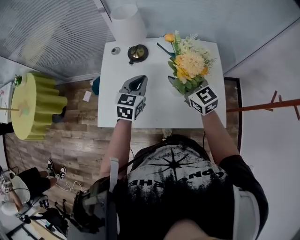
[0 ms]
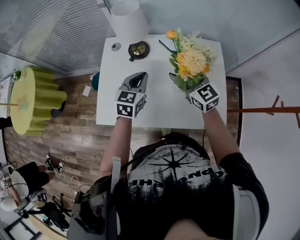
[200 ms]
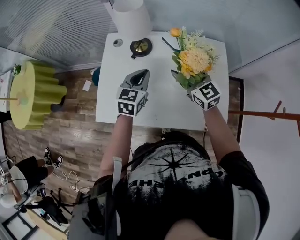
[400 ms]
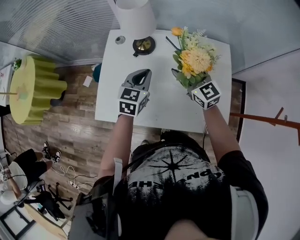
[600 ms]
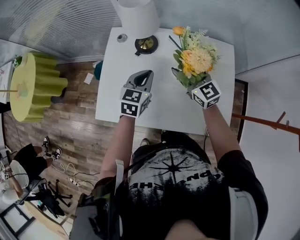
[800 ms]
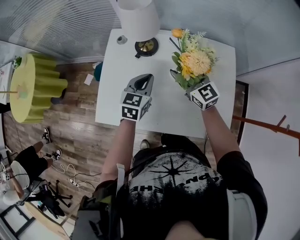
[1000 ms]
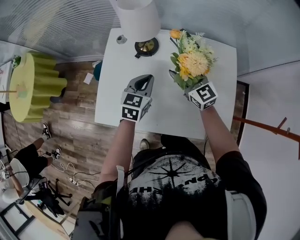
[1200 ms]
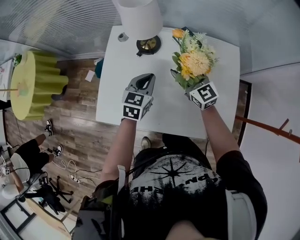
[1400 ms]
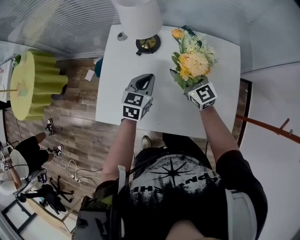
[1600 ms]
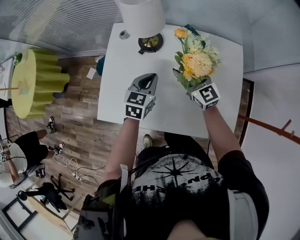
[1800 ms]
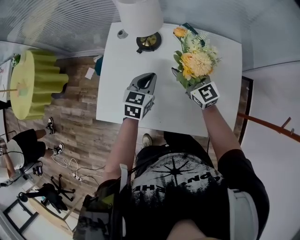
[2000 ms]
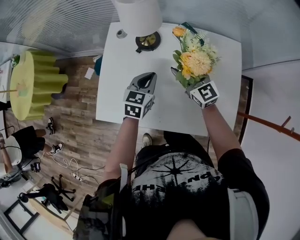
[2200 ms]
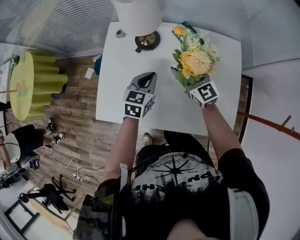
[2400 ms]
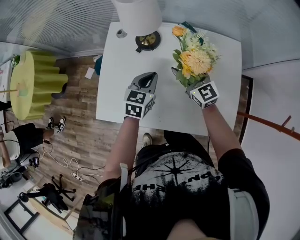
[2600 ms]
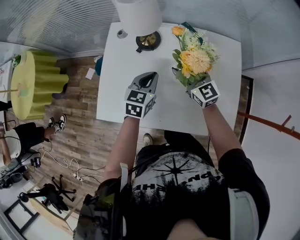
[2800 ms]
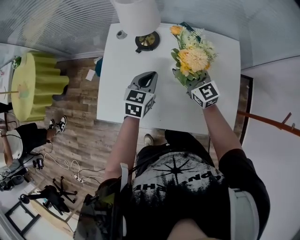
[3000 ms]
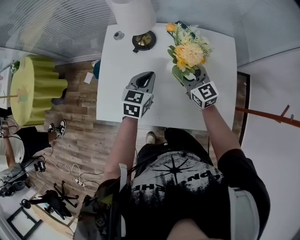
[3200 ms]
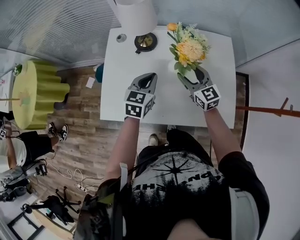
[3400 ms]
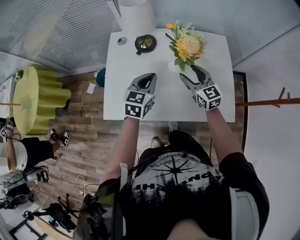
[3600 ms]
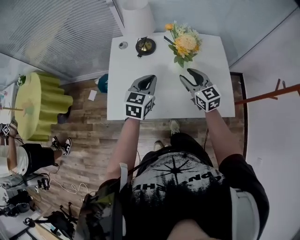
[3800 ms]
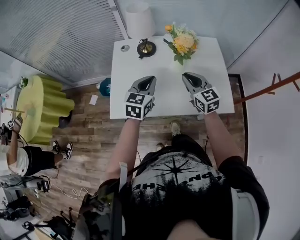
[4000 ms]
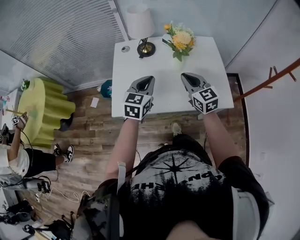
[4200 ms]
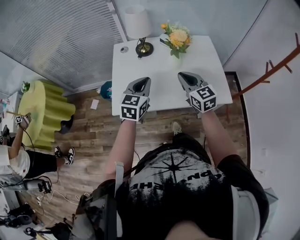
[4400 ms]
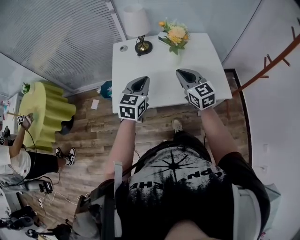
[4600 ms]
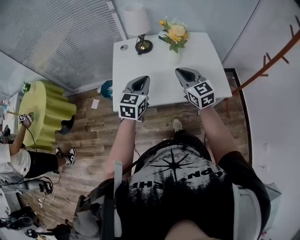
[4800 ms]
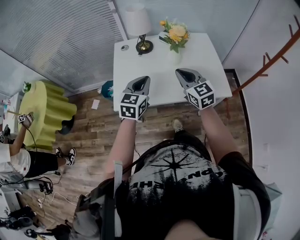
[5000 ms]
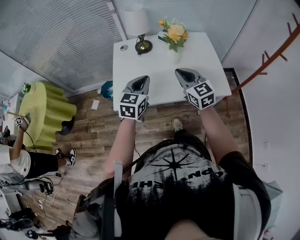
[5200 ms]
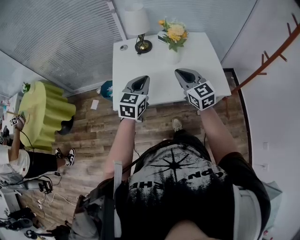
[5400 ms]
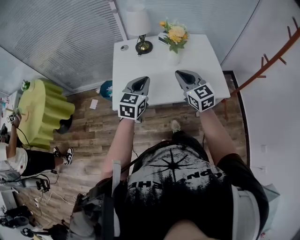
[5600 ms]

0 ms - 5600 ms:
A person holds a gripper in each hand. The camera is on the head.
0 ms - 1400 ms: The right gripper travels downward and forward by about 10 cm; the left gripper travels downward by roughly 5 cm.
1400 ms - 2800 ms: The grippers move only a little.
2800 ms - 4200 ms: The right gripper moves backward, some 20 cm, and closes. Meanwhile the left gripper travels backward and upward by some 20 cm.
4200 ms - 5600 ms: The grippers both shift backward by about 5 cm.

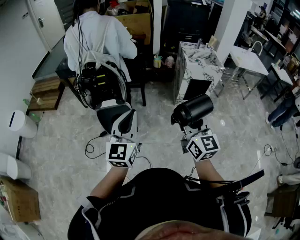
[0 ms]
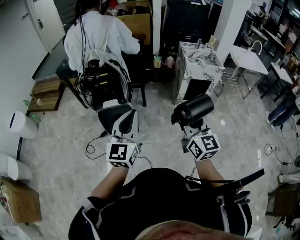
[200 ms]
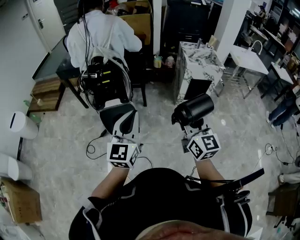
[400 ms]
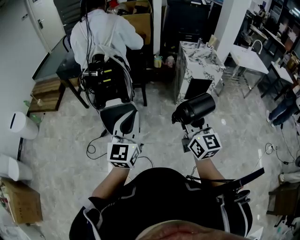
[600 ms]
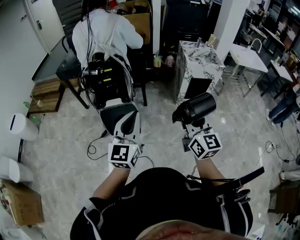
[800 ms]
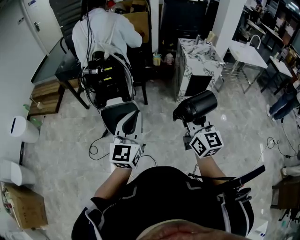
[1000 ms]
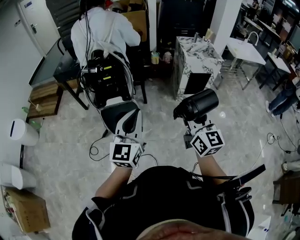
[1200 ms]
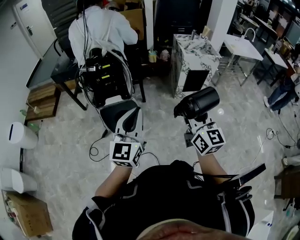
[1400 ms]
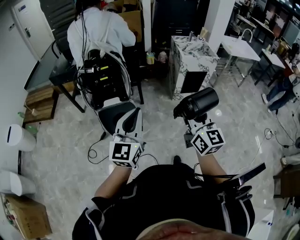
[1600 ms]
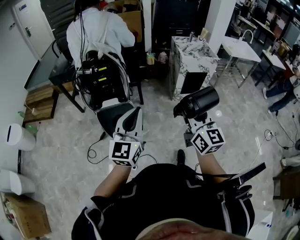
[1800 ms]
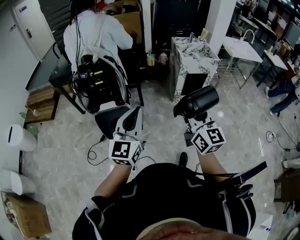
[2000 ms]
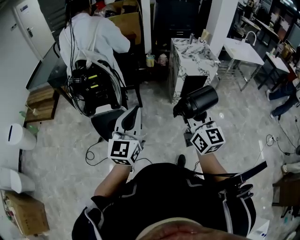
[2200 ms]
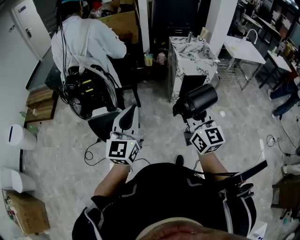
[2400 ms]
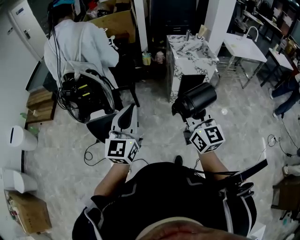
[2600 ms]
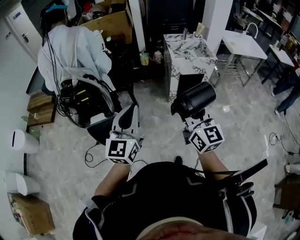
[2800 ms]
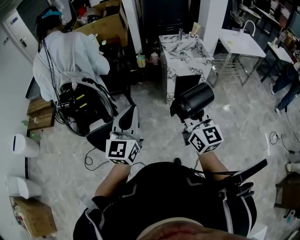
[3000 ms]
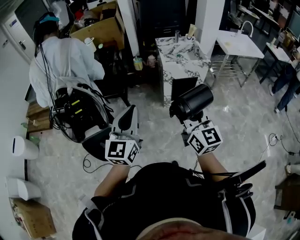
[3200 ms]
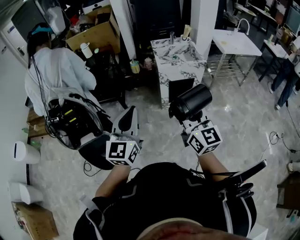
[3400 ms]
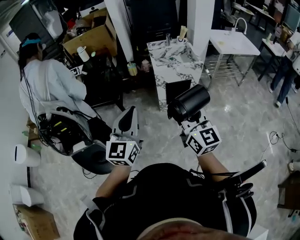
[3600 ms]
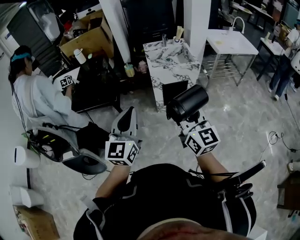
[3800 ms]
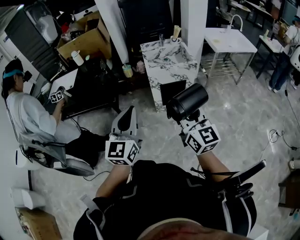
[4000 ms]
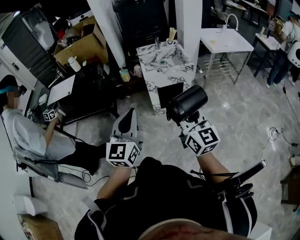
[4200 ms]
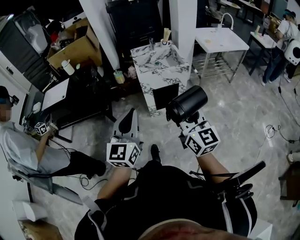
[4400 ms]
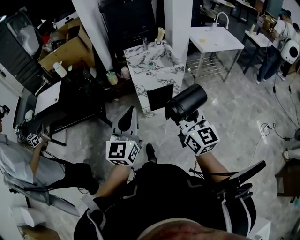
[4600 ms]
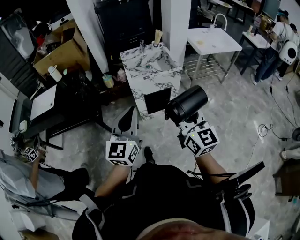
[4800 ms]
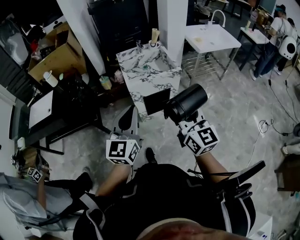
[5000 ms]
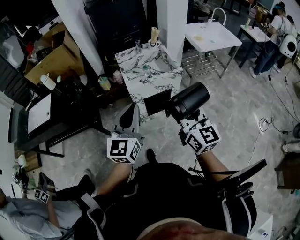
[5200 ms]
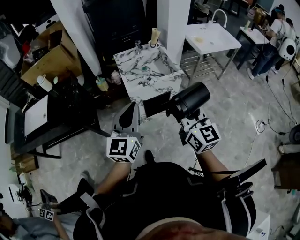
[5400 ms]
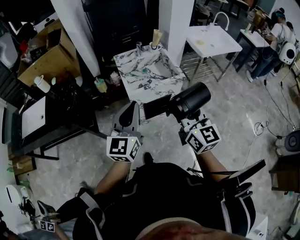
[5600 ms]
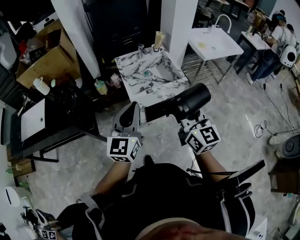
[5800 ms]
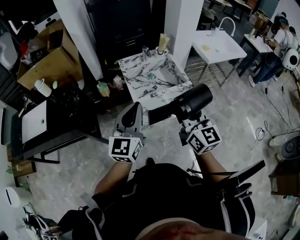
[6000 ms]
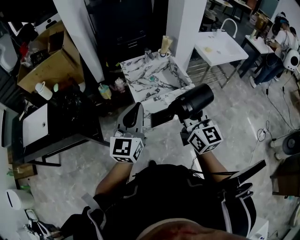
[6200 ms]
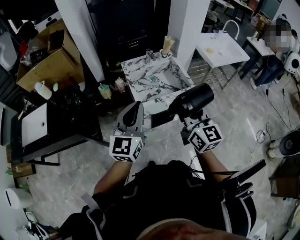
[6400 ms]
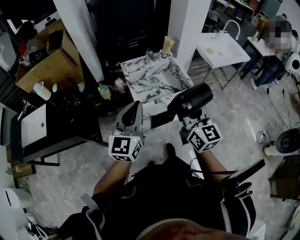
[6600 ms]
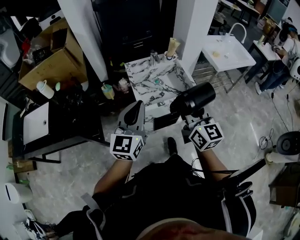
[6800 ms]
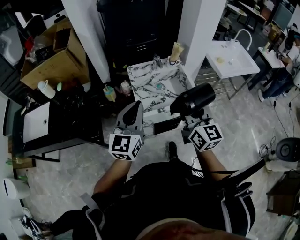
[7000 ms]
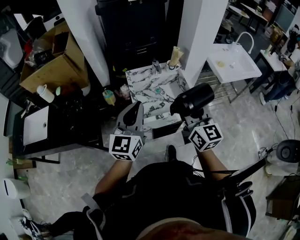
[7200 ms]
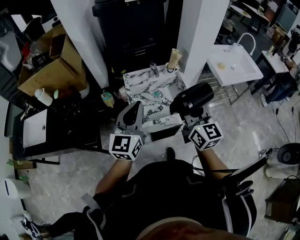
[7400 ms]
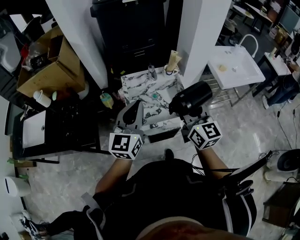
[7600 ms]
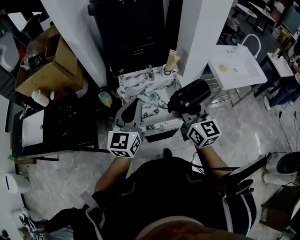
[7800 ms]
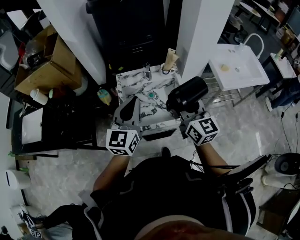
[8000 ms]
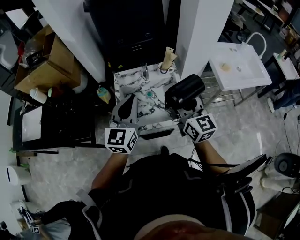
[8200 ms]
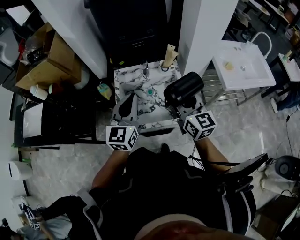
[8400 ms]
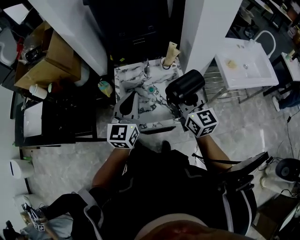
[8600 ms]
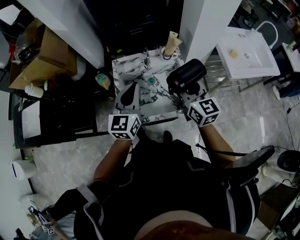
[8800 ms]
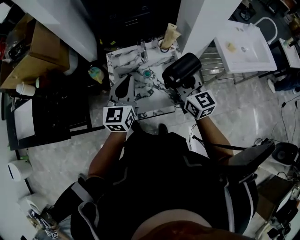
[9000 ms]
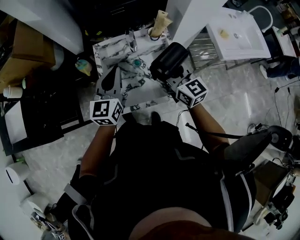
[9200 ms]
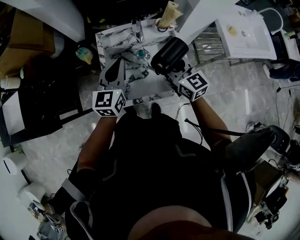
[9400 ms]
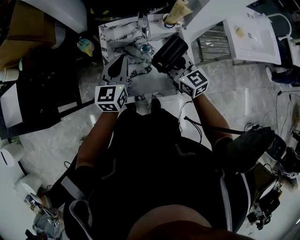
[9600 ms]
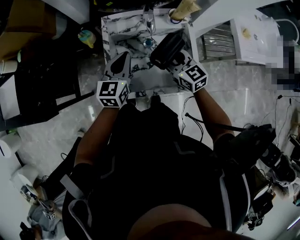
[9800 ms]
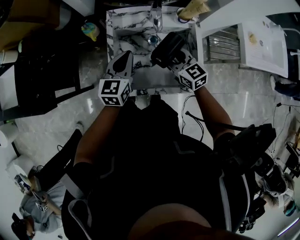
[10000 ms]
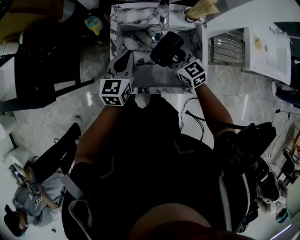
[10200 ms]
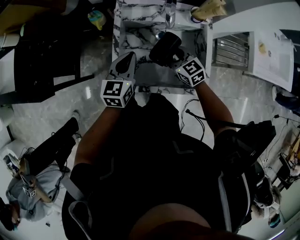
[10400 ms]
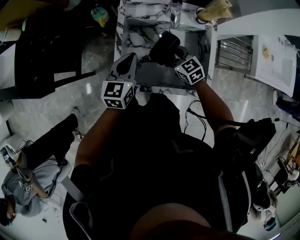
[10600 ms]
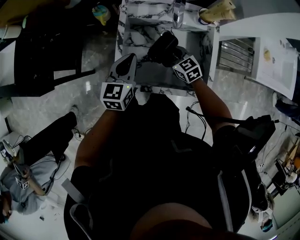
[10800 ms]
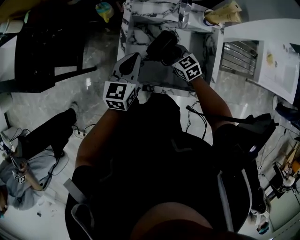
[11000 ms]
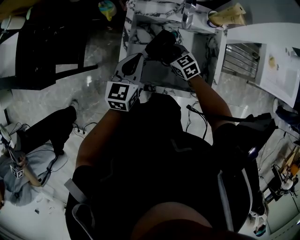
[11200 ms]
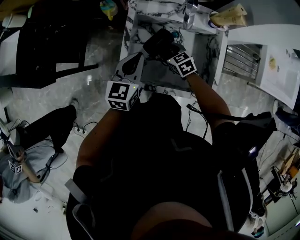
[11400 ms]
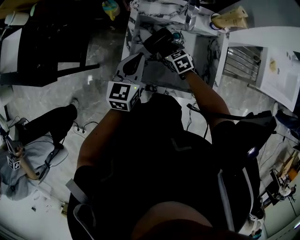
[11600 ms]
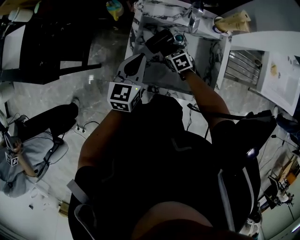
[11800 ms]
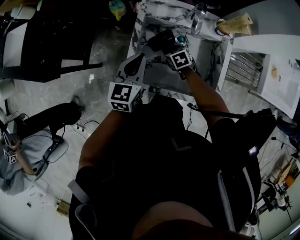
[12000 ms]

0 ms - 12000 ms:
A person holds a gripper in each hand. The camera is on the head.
0 ms - 1600 ms: The right gripper shifts by about 5 cm.
1600 ms - 3000 ms: Both grippers travel together to the right and forward, approximately 25 cm.
3000 ms - 4400 ms: The two grippers go roughly 20 cm to the right and forward.
4400 ms - 6000 ms: The two grippers go about 30 cm forward.
6000 ms - 7600 ms: The grippers both shift forward by roughly 20 cm.
7600 ms - 9000 ms: The grippers both shift forward and downward by about 20 cm.
9000 ms - 10400 ms: The right gripper is displaced downward and to the left by roughly 25 cm, and turns by approximately 40 degrees, while the left gripper moves downward, approximately 15 cm, and changes its angle by roughly 20 degrees.
10400 ms - 12000 ms: The right gripper moves downward, about 15 cm, and points its fingers about 30 degrees further downward.

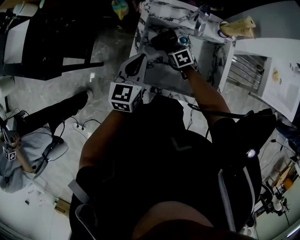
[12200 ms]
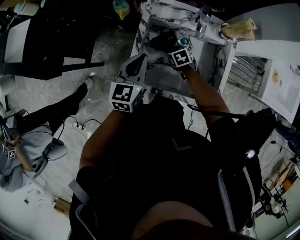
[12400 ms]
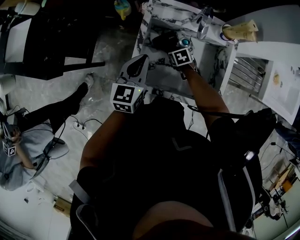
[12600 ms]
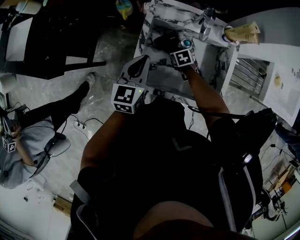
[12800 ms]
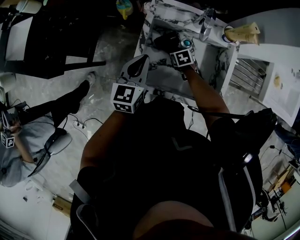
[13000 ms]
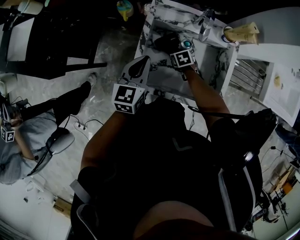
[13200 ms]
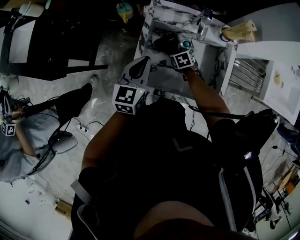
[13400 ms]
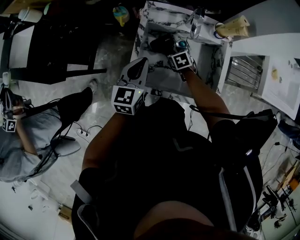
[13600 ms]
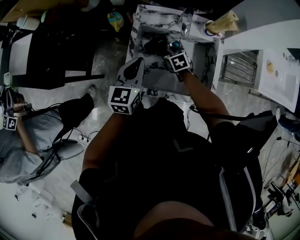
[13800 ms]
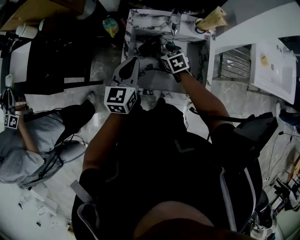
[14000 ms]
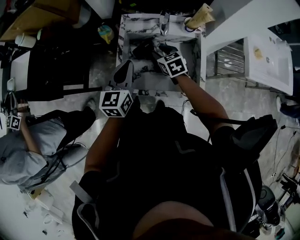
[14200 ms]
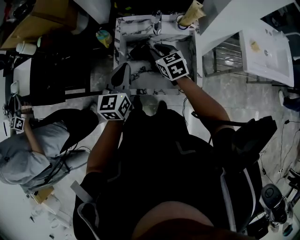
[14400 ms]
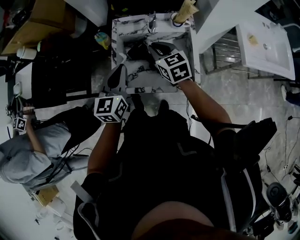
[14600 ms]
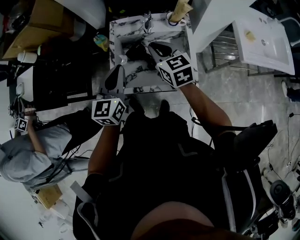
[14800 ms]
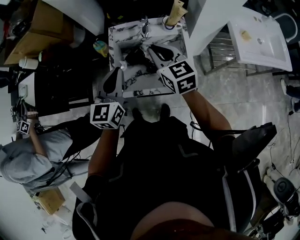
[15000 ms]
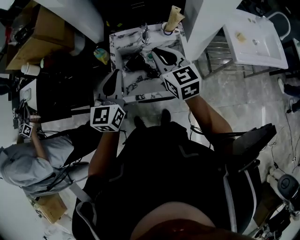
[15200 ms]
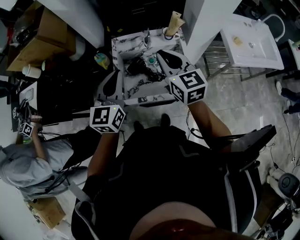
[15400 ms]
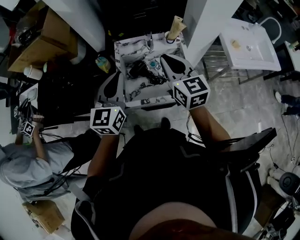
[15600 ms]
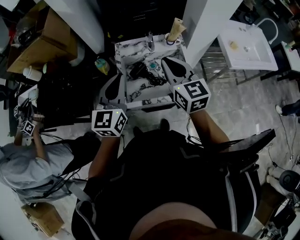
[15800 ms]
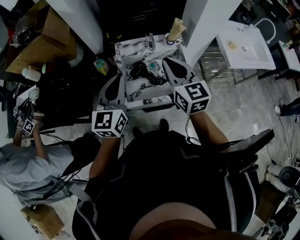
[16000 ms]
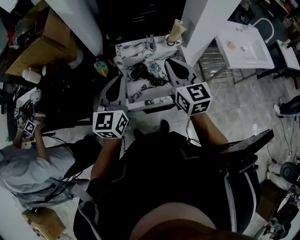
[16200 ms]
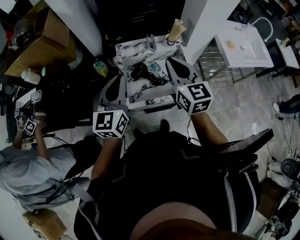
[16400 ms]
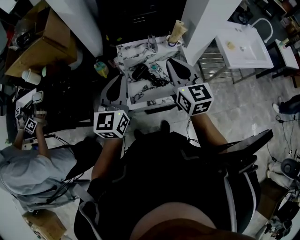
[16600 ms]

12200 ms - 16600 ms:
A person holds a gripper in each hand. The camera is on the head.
12200 ms - 13600 ms: The grippers move only a little.
13600 ms - 15200 ms: The left gripper heads upward, covering about 15 cm; the right gripper shifts some 40 cm upward, points its fingers roughly 50 degrees further upward, and closes up.
15200 ms - 16600 ms: The left gripper travels to the left and upward by roughly 10 cm; the right gripper is displaced upward and backward by some 10 cm.

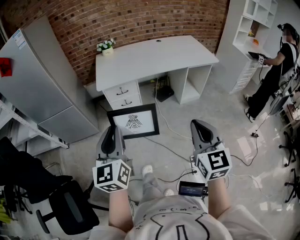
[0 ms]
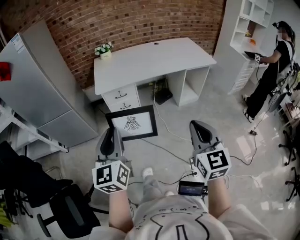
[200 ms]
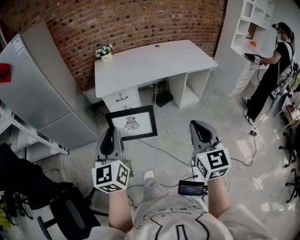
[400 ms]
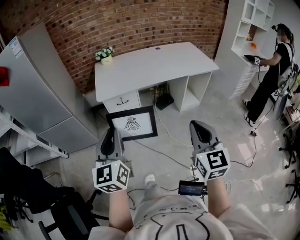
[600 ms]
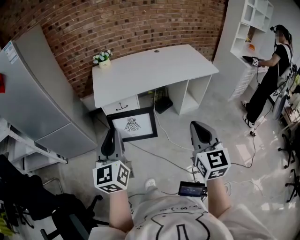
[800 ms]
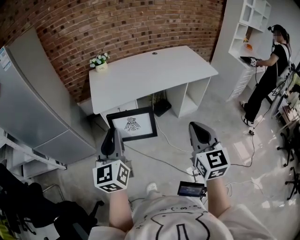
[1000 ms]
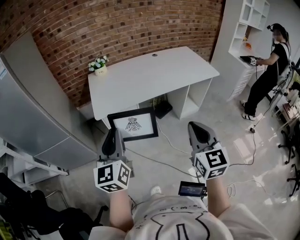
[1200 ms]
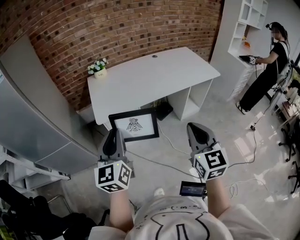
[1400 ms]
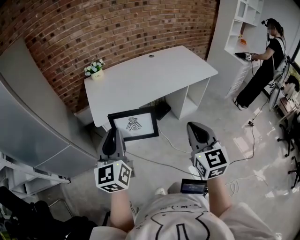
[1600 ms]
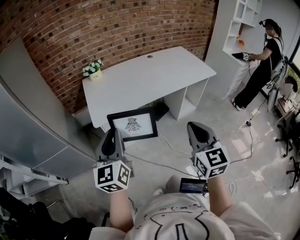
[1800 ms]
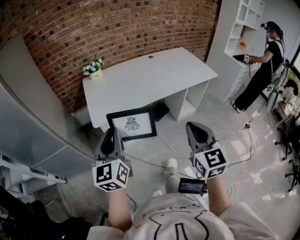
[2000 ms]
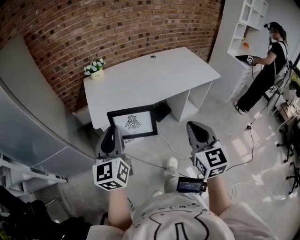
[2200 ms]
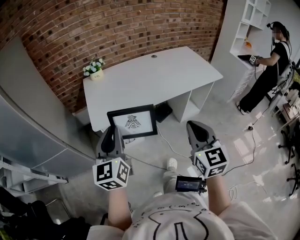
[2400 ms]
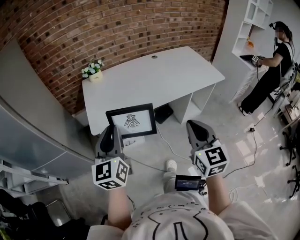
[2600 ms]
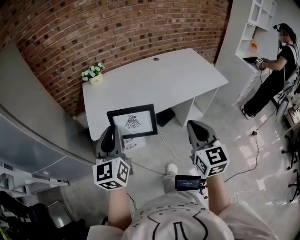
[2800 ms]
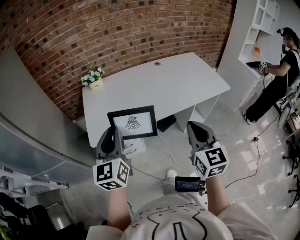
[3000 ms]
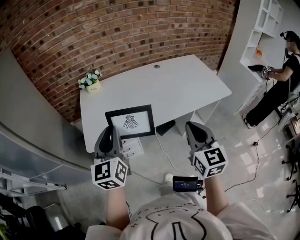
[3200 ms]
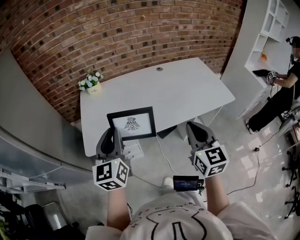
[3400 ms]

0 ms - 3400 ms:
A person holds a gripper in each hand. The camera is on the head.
0 ms - 1600 ms: The right gripper moves forward and to the left, about 25 cm; the left gripper shifts approximately 25 cm forward.
1600 ms - 3400 ms: The grippers both shift forward by some 25 cm.
